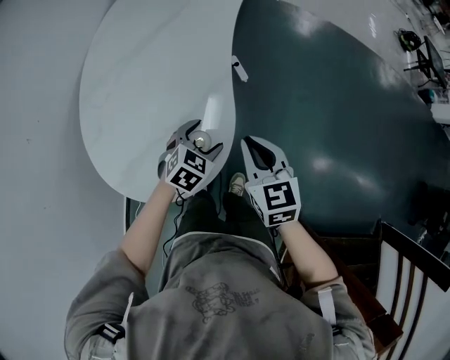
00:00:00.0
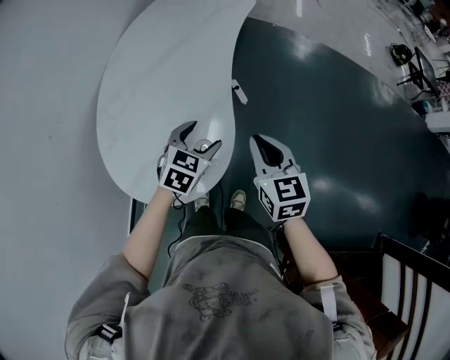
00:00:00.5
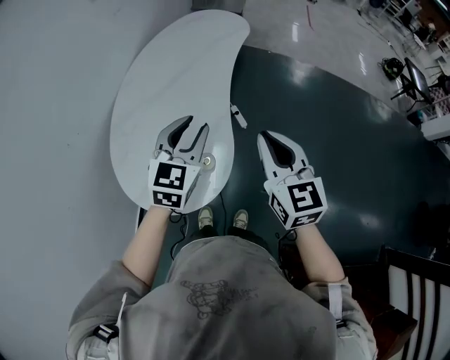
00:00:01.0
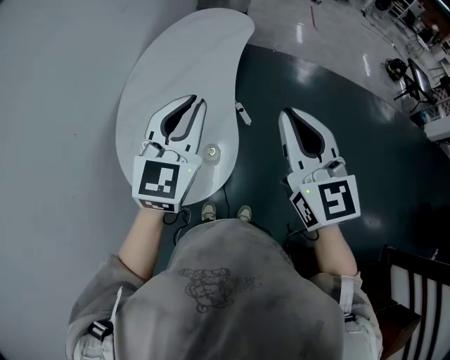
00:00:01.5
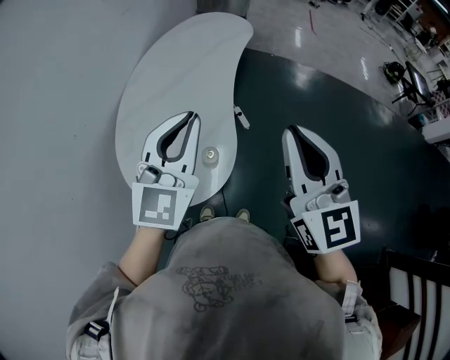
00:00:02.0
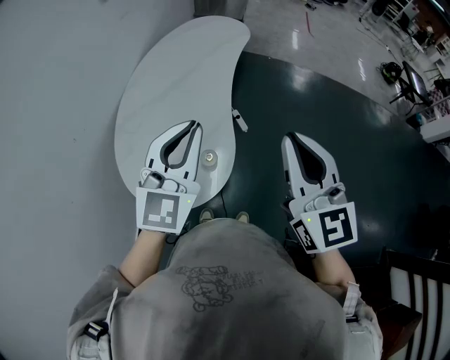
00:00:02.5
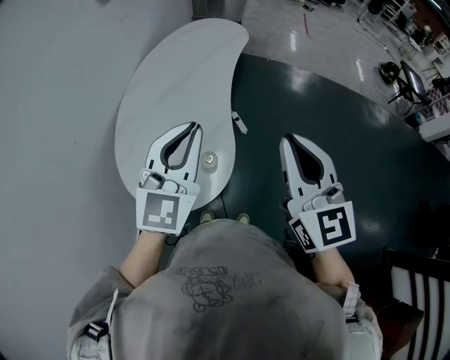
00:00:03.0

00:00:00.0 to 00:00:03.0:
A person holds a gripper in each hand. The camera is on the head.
00:00:00.0 to 00:00:01.5: Both grippers travel together upward, about 35 cm. The right gripper tilts its fingers some 30 degrees upward; the left gripper tips its fingers upward by about 40 degrees, and closes its fingers.
00:00:01.5 to 00:00:03.0: There are only small adjustments of the grippers.

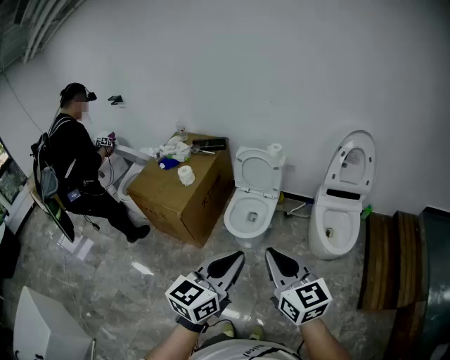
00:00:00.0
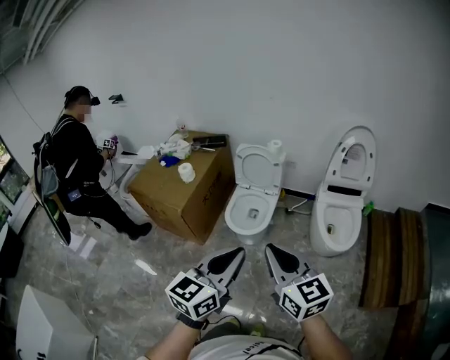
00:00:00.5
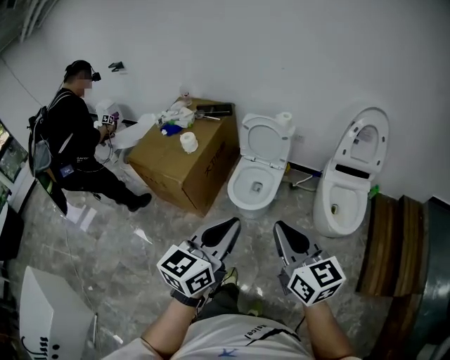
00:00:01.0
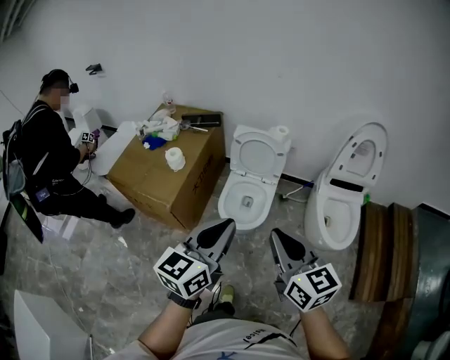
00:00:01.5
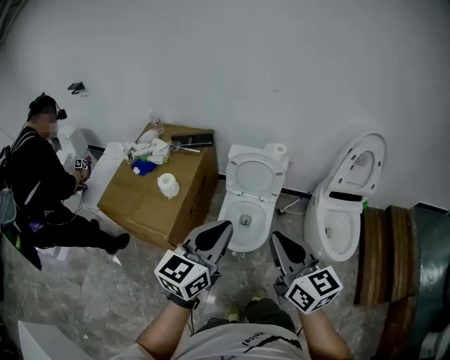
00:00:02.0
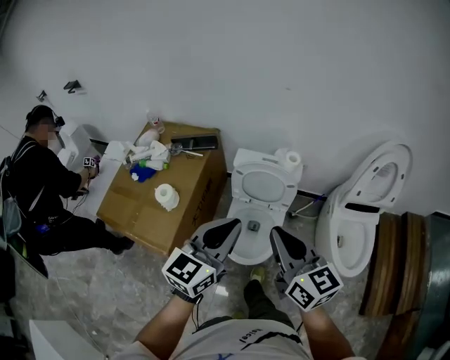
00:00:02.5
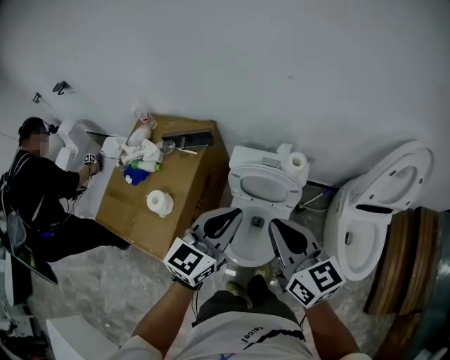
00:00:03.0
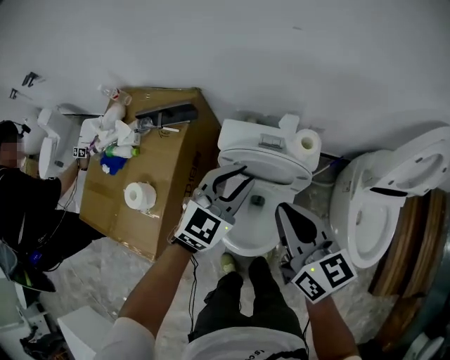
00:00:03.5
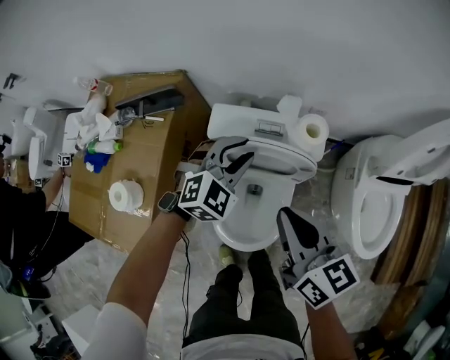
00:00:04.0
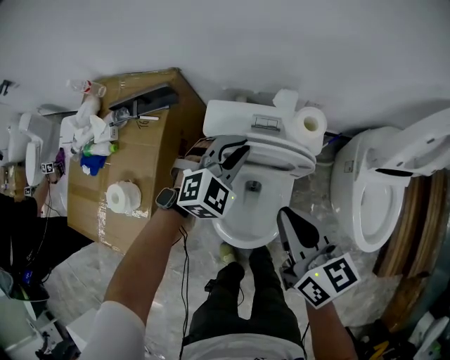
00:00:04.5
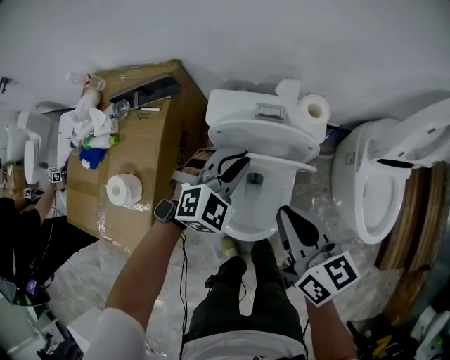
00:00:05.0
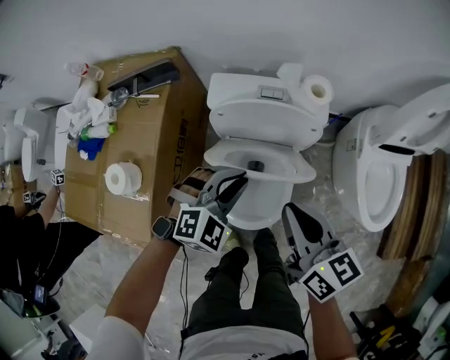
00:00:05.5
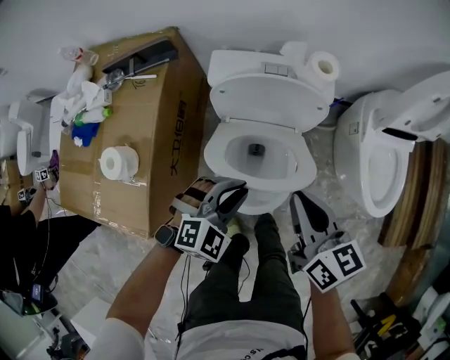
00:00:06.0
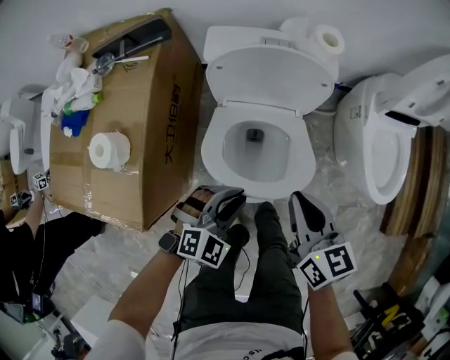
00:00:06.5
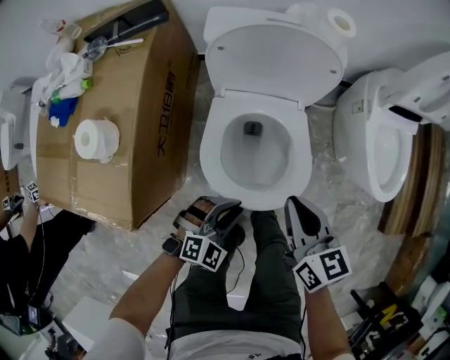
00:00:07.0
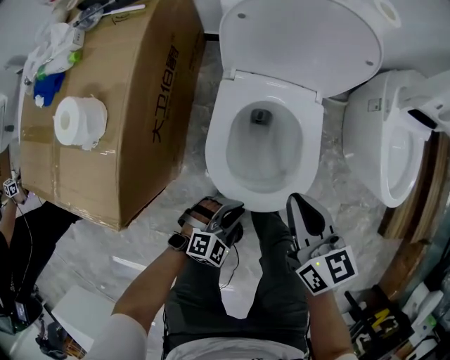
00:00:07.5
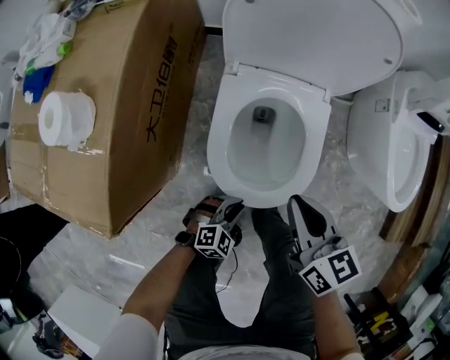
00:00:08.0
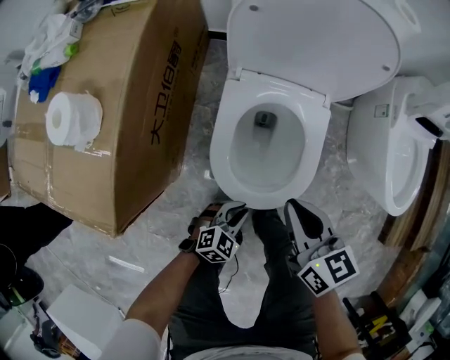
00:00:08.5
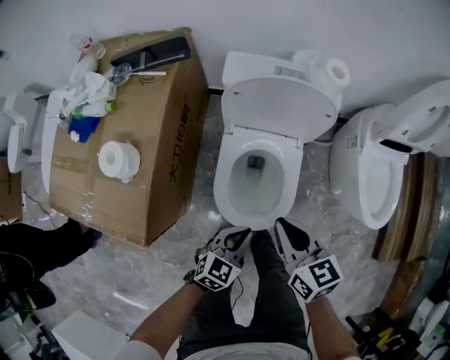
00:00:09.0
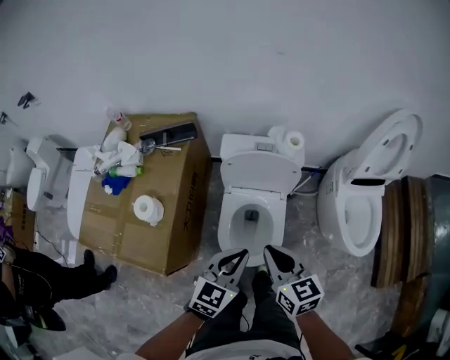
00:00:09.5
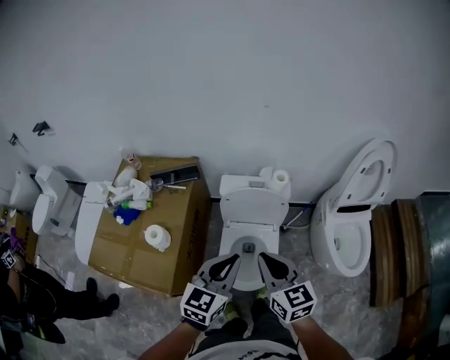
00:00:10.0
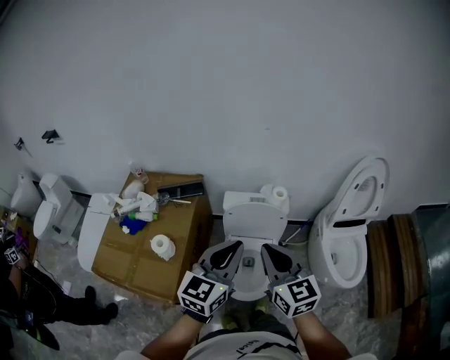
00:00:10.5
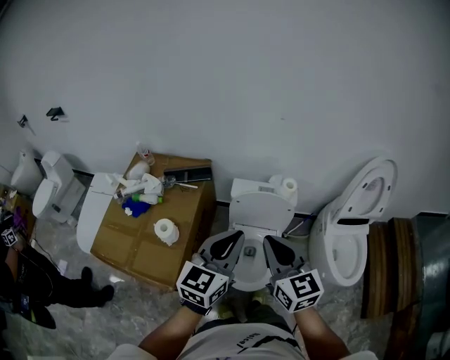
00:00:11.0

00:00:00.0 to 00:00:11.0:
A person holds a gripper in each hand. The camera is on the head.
00:00:00.0 to 00:00:02.0: The right gripper goes some 30 cm forward; the left gripper shifts about 35 cm forward and to the left.
00:00:02.0 to 00:00:03.5: The two grippers travel together, forward, about 40 cm. The grippers both shift downward by approximately 20 cm. The left gripper turns by approximately 30 degrees.
00:00:03.5 to 00:00:05.5: Both grippers travel together downward and backward, approximately 15 cm. The left gripper swivels about 30 degrees.
00:00:05.5 to 00:00:07.5: The left gripper is displaced downward and backward by some 40 cm; the right gripper is displaced downward and backward by roughly 25 cm.
00:00:07.5 to 00:00:09.0: The right gripper goes roughly 10 cm upward. The left gripper shifts approximately 15 cm upward, and changes its angle by some 30 degrees.
00:00:09.0 to 00:00:11.0: Both grippers travel together upward, about 40 cm. The left gripper points its fingers approximately 30 degrees further upward, while the right gripper changes its angle by approximately 30 degrees.

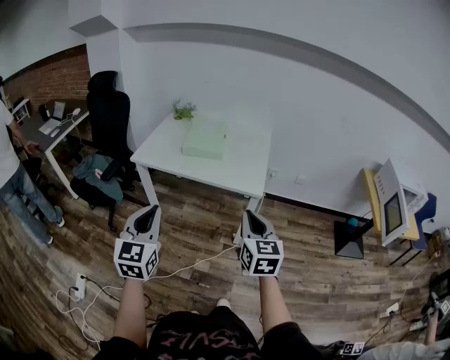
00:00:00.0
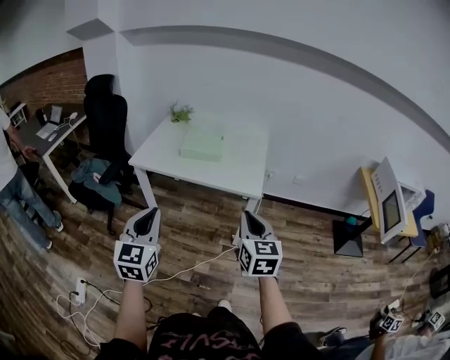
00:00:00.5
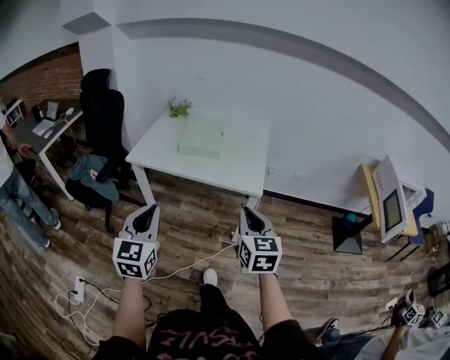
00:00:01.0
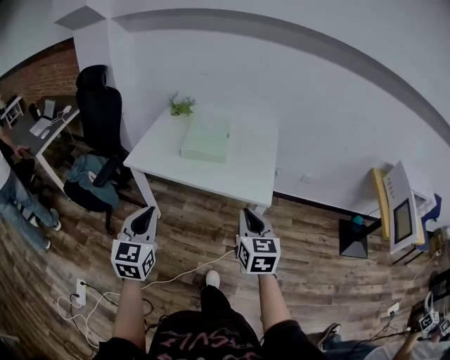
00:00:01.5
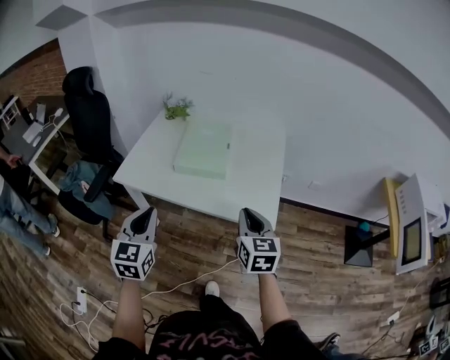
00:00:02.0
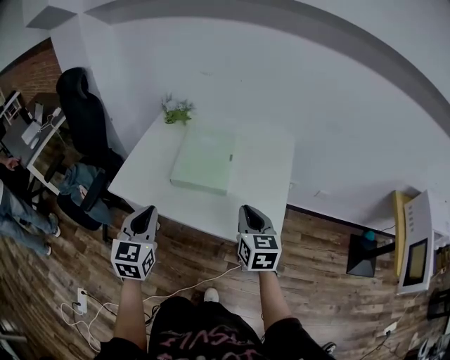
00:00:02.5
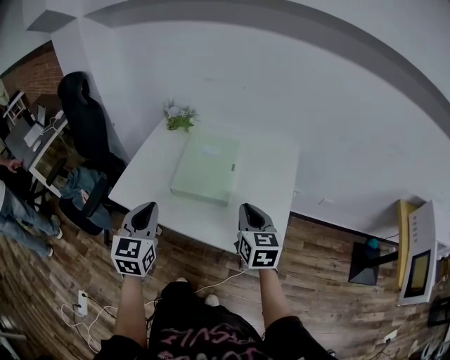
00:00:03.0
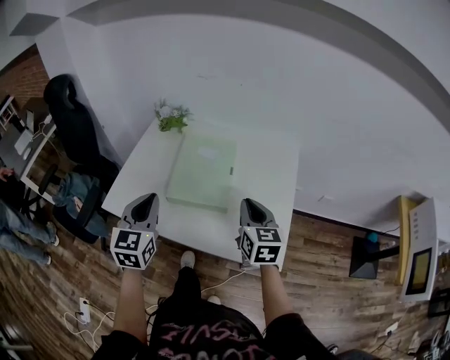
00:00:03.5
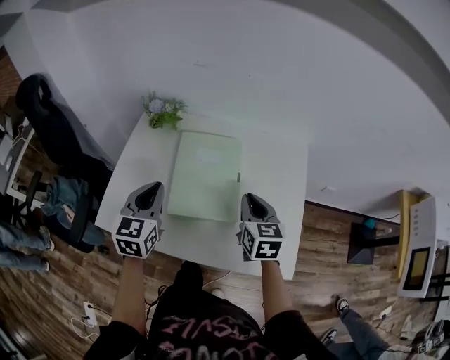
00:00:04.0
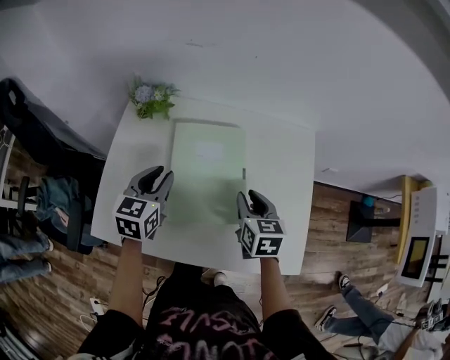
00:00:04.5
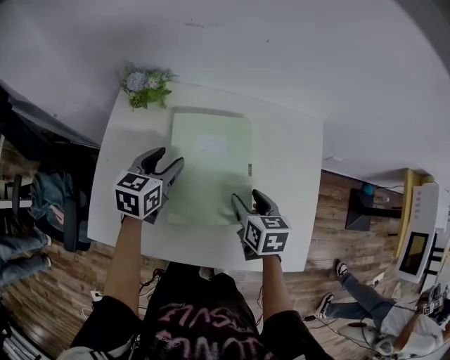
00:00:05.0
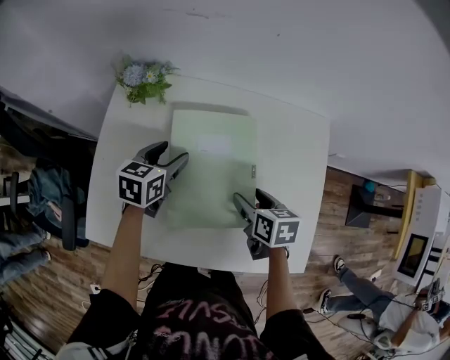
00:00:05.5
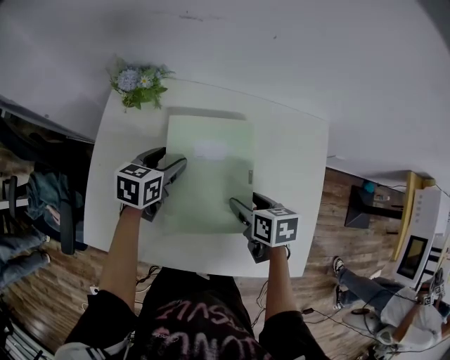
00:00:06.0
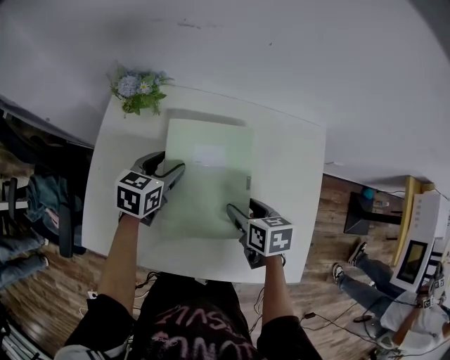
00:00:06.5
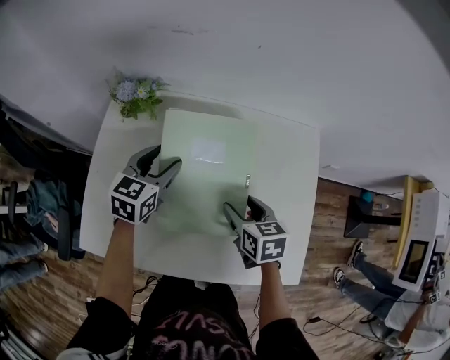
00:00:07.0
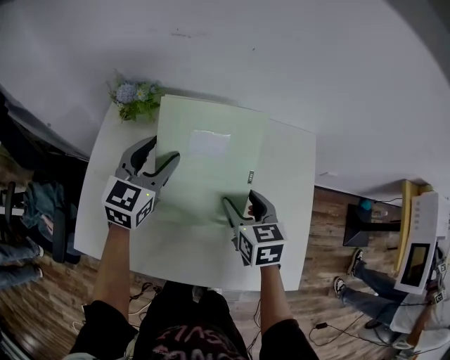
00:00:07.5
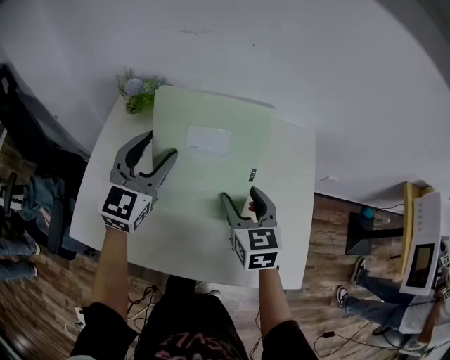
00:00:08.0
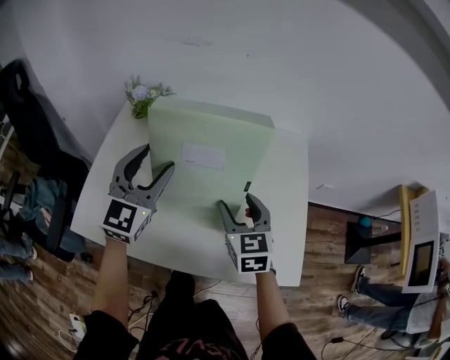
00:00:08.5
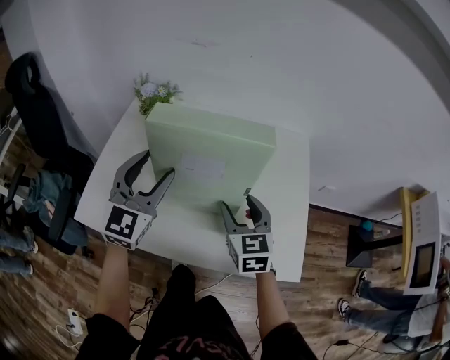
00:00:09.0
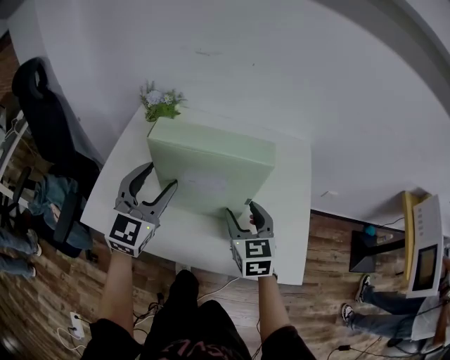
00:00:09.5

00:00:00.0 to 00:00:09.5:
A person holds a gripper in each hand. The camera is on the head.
00:00:00.0 to 00:00:02.0: Both grippers travel together forward, some 25 cm.
00:00:02.0 to 00:00:04.0: The grippers both shift forward by roughly 35 cm.
00:00:04.0 to 00:00:05.5: The left gripper travels forward and downward by about 20 cm, rotates approximately 30 degrees, and opens up. Meanwhile the right gripper shifts some 15 cm downward, swivels approximately 30 degrees, and opens up.
00:00:05.5 to 00:00:07.5: The left gripper travels upward by some 10 cm, and turns by about 30 degrees. Meanwhile the right gripper changes place by about 5 cm, and rotates about 20 degrees.
00:00:07.5 to 00:00:09.5: The left gripper moves backward, about 20 cm. The right gripper shifts about 10 cm backward.

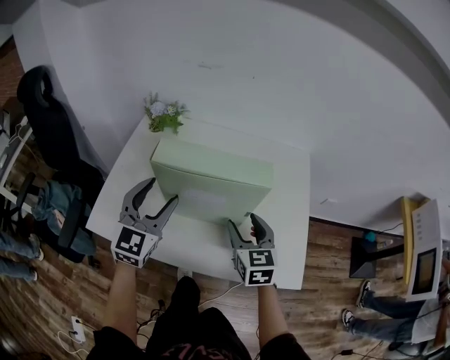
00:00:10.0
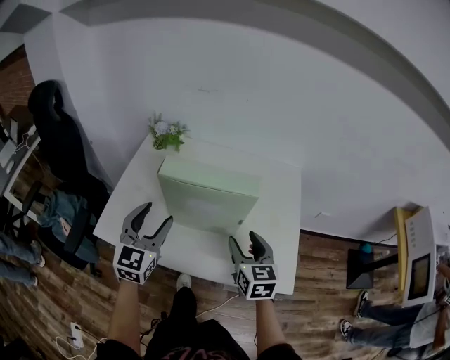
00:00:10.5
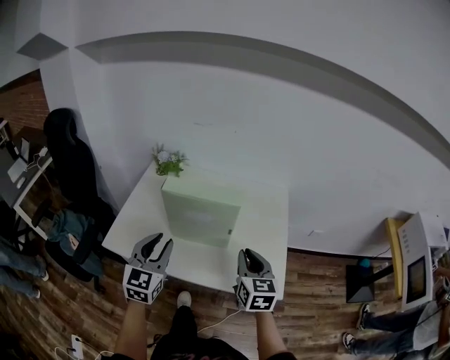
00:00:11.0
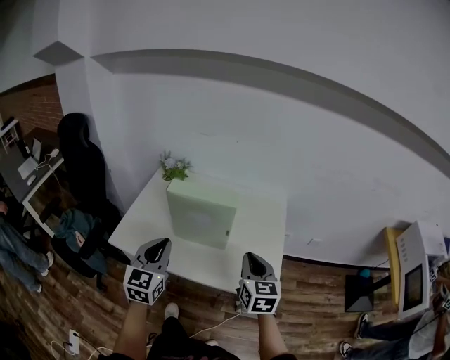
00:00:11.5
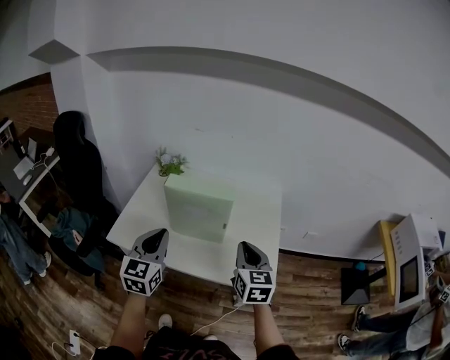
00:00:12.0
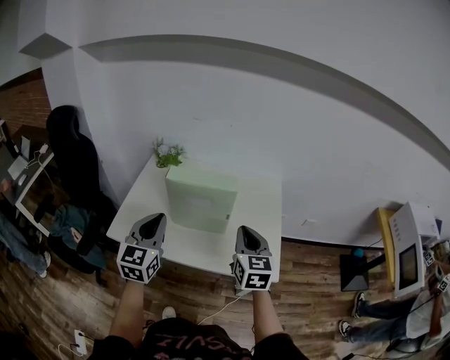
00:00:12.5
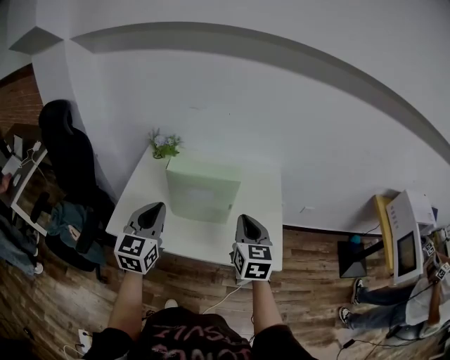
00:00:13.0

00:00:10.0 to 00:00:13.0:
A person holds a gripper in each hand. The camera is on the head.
00:00:10.0 to 00:00:11.5: The right gripper moves upward, backward and to the right, approximately 20 cm, and closes its fingers; the left gripper goes approximately 20 cm backward and upward, and closes its fingers.
00:00:11.5 to 00:00:13.0: The left gripper shifts by approximately 5 cm; the right gripper ends up approximately 5 cm from where it was.
